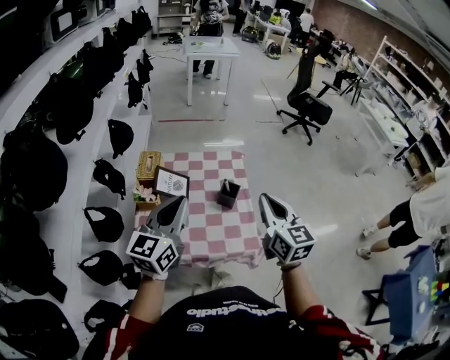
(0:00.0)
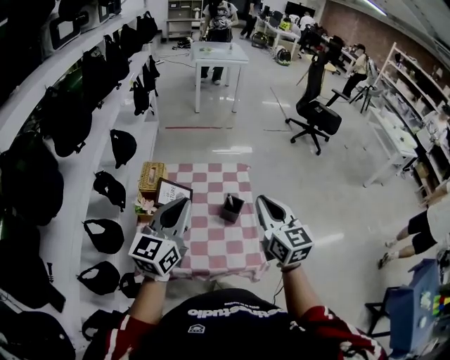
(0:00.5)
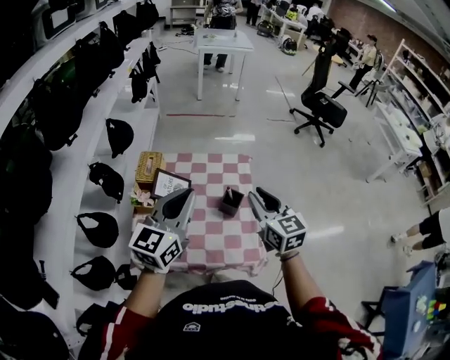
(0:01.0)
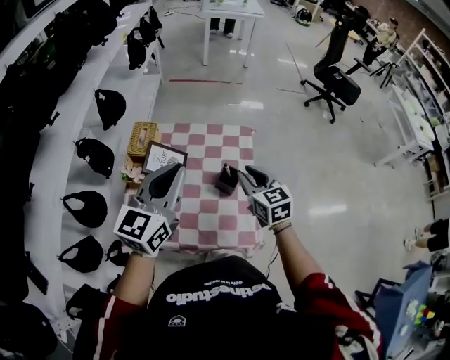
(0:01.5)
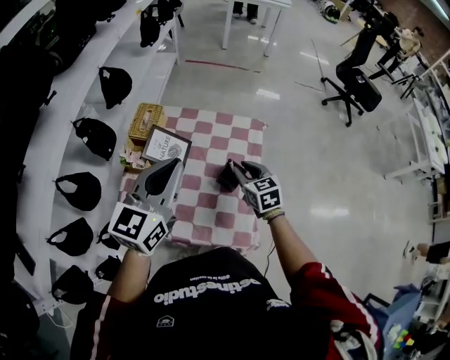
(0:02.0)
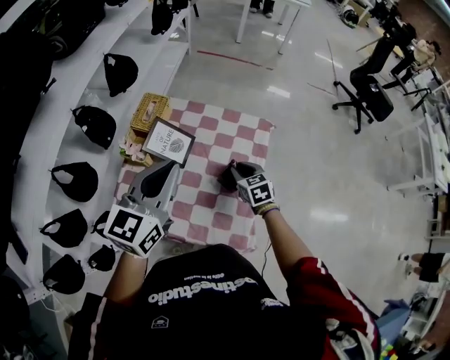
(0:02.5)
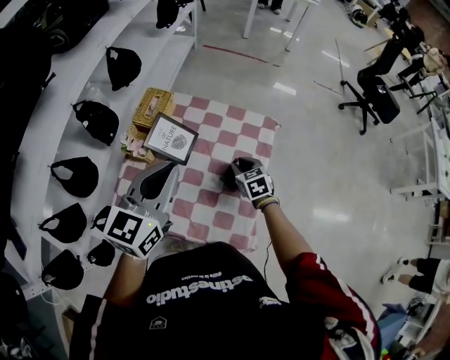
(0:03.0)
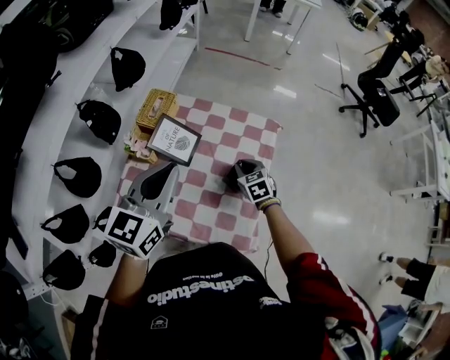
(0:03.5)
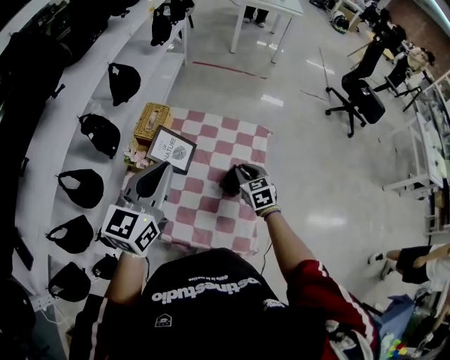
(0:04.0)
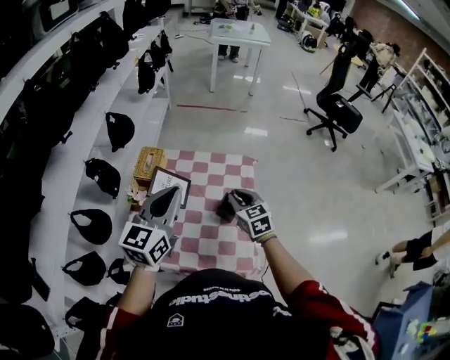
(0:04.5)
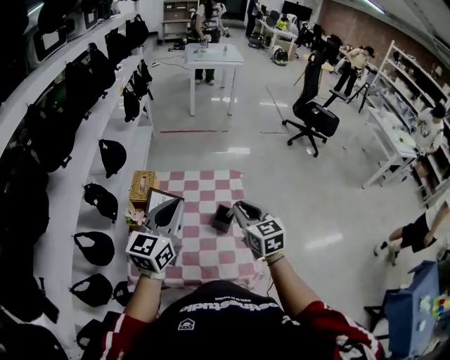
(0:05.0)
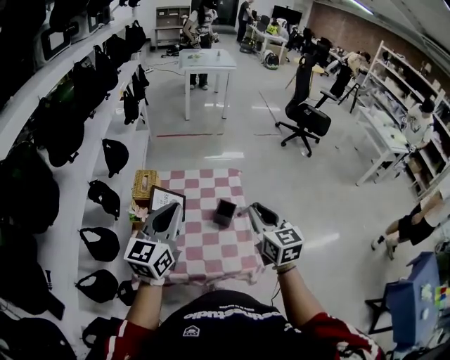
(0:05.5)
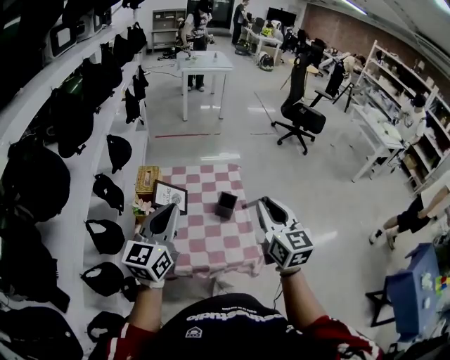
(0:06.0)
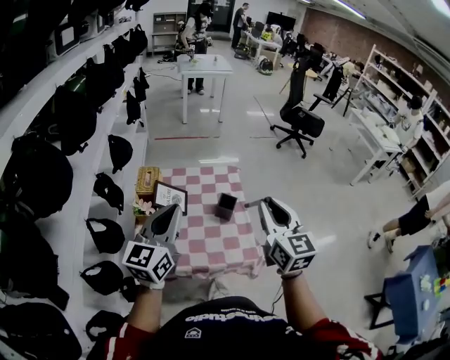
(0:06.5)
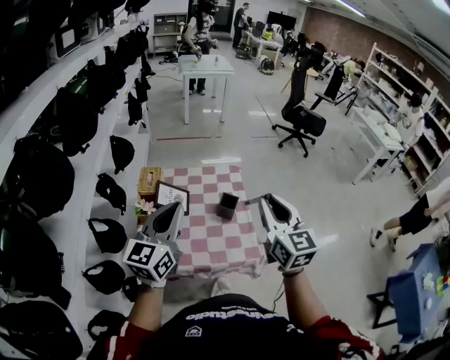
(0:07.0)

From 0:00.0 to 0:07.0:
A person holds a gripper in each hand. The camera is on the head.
From 0:00.0 to 0:02.0: The right gripper moves downward and forward, some 30 cm, swivels about 40 degrees, and opens; the left gripper shifts some 15 cm forward and to the right.
From 0:02.0 to 0:03.5: The right gripper moves downward, about 10 cm.
From 0:03.5 to 0:05.0: The right gripper moves upward and backward, roughly 30 cm, and swivels some 30 degrees, while the left gripper is displaced upward by roughly 5 cm.
From 0:05.0 to 0:07.0: The right gripper moves backward and upward, some 20 cm, and turns by approximately 20 degrees. The left gripper is displaced backward by approximately 15 cm.

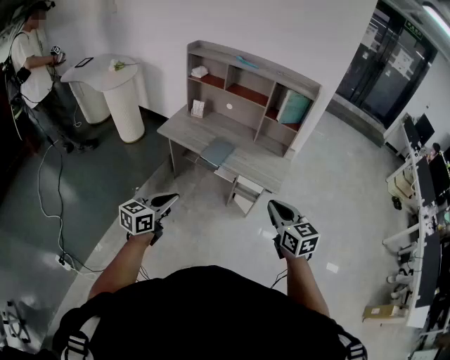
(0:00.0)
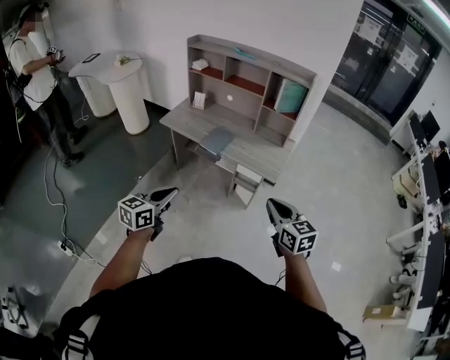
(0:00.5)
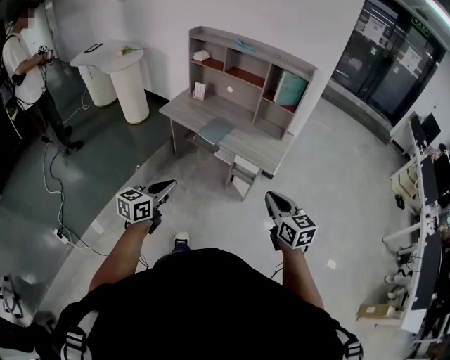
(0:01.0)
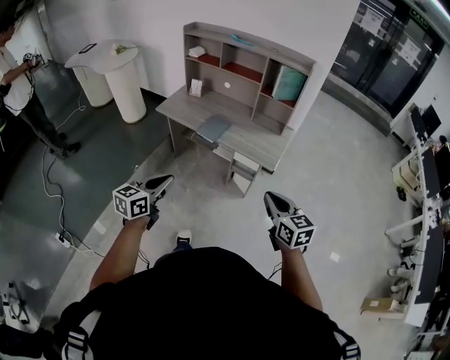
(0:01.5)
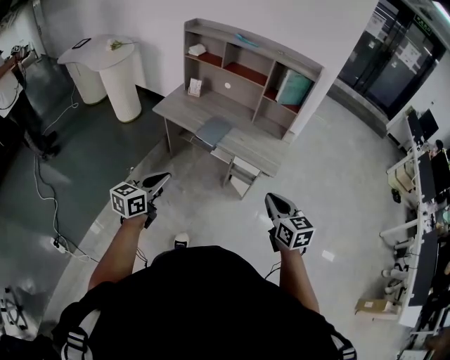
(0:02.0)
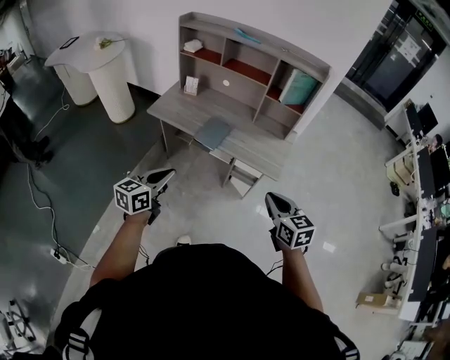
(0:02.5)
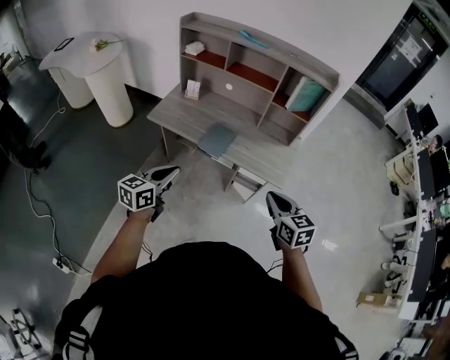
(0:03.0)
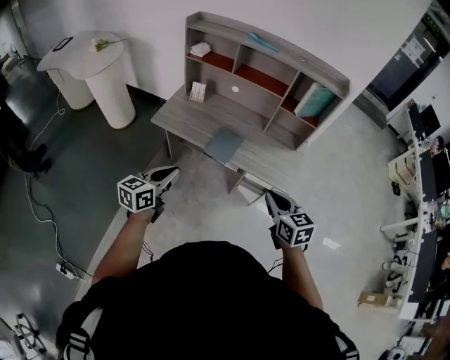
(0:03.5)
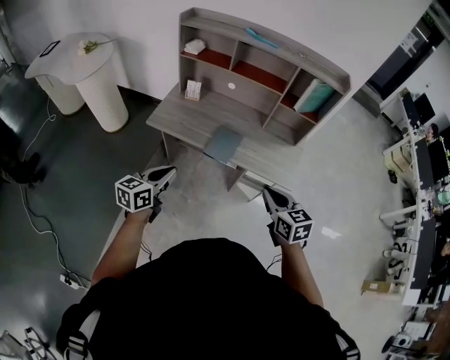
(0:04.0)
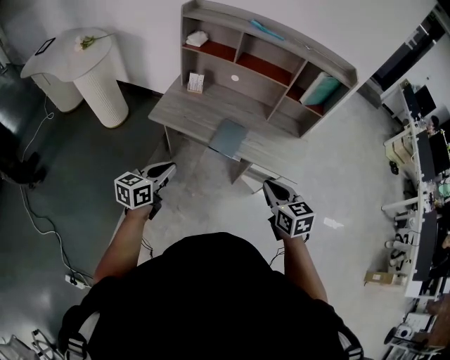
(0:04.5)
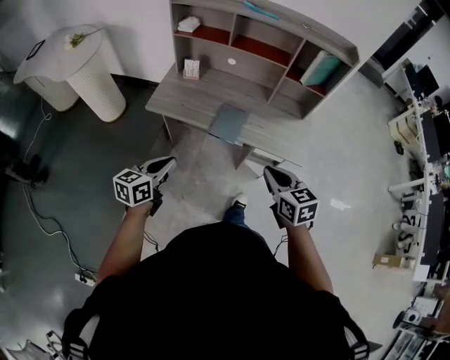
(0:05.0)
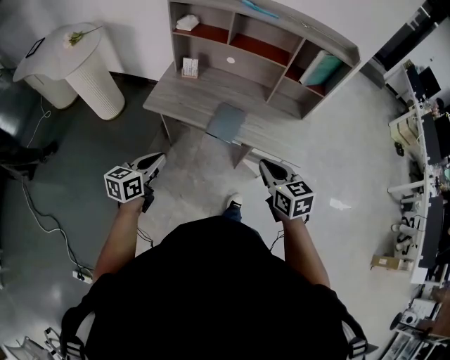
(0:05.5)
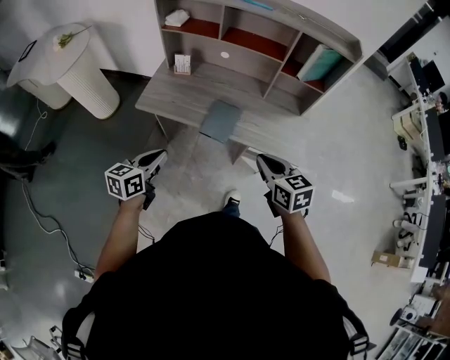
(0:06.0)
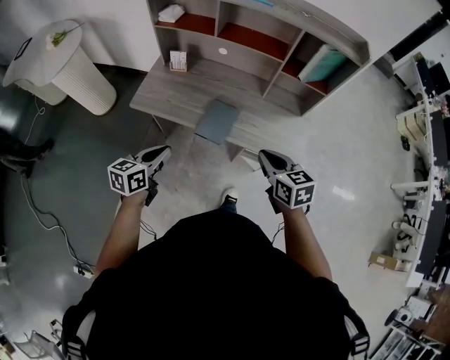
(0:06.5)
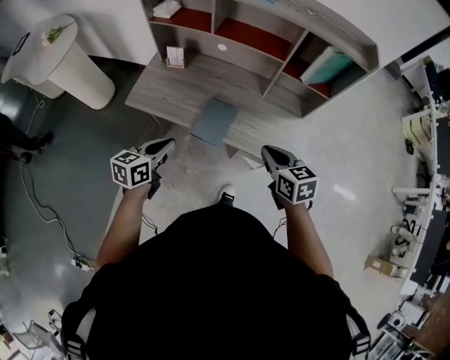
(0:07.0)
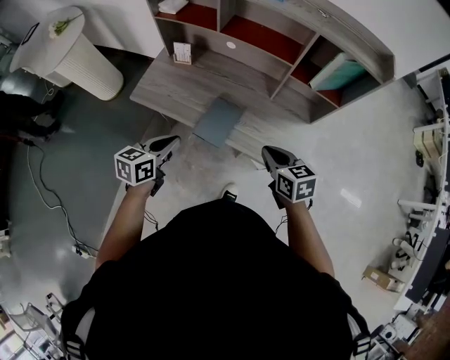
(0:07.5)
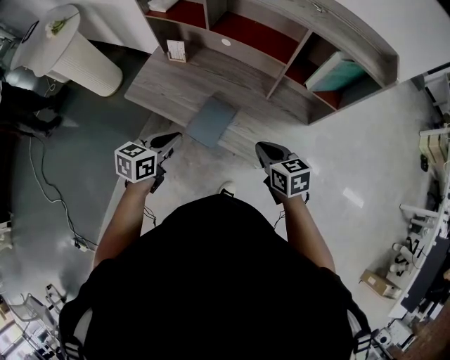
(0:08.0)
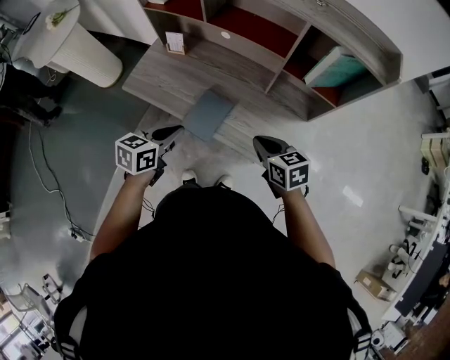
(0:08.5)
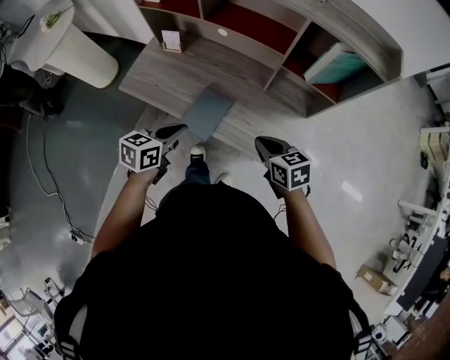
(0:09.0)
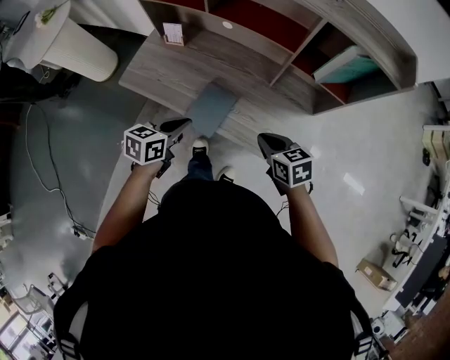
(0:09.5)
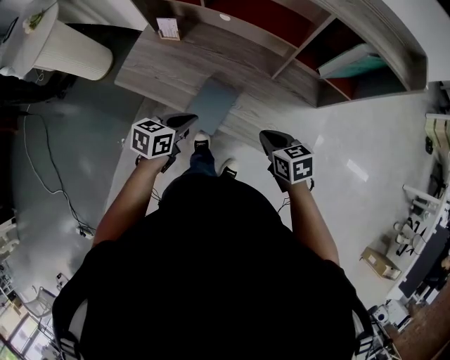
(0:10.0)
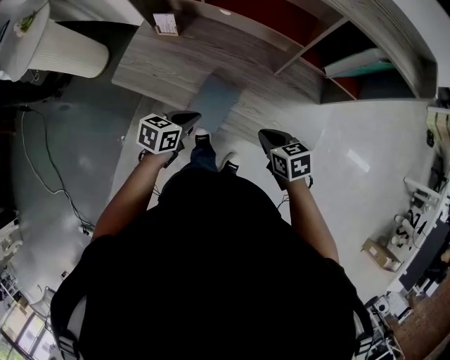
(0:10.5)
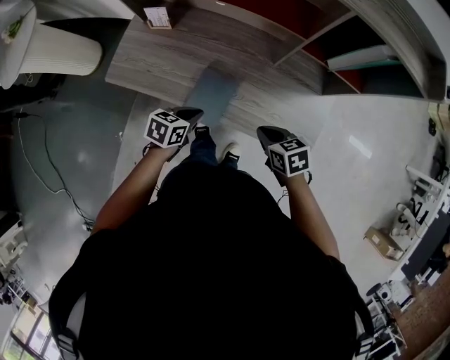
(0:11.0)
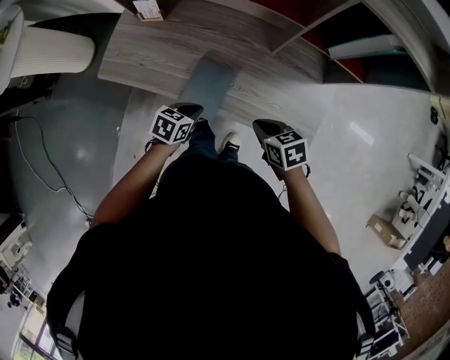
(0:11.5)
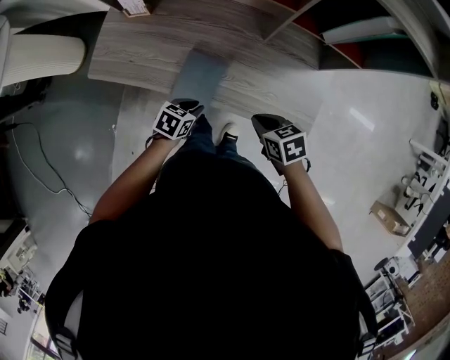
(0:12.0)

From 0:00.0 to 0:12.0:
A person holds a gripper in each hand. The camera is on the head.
From 0:00.0 to 0:02.0: The left gripper moves about 10 cm backward and comes back.
From 0:02.0 to 0:04.0: The two grippers go about 25 cm forward and to the left.
From 0:04.0 to 0:06.0: The grippers both shift forward by roughly 5 cm.
From 0:06.0 to 0:08.0: The right gripper goes roughly 20 cm forward, to the right and downward. Meanwhile the left gripper shifts some 20 cm forward and to the right.
From 0:08.0 to 0:10.0: The left gripper travels downward and forward by about 10 cm; the right gripper heads downward, covering roughly 5 cm.
From 0:10.0 to 0:12.0: The left gripper is displaced downward by about 15 cm, and rotates some 30 degrees. Meanwhile the right gripper moves downward, approximately 10 cm.

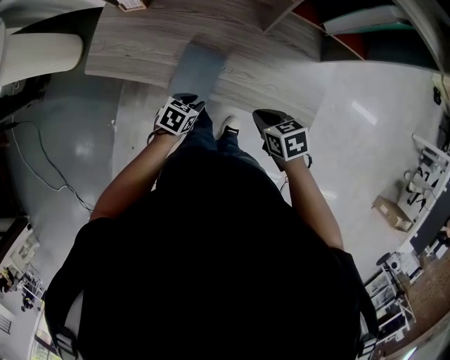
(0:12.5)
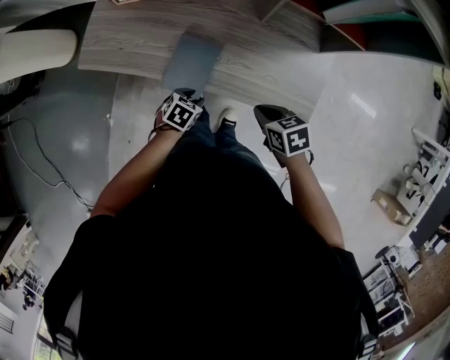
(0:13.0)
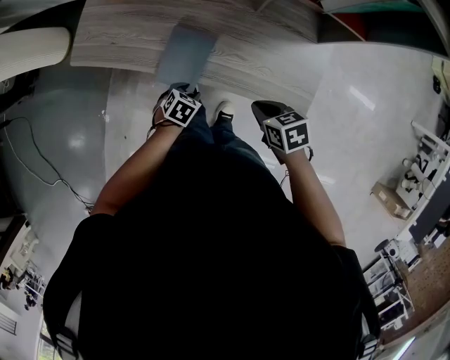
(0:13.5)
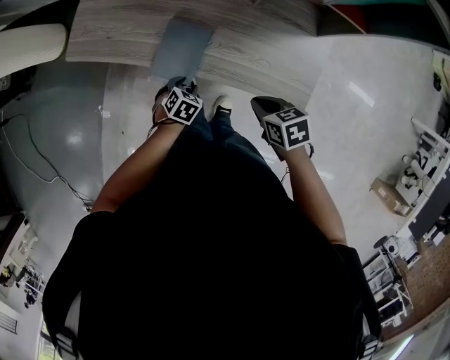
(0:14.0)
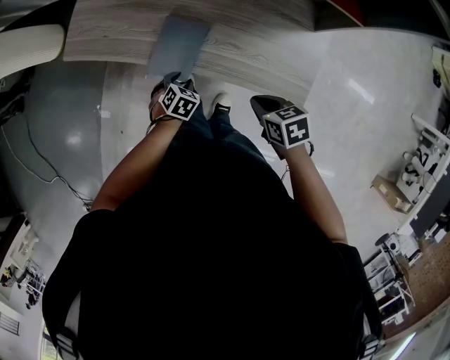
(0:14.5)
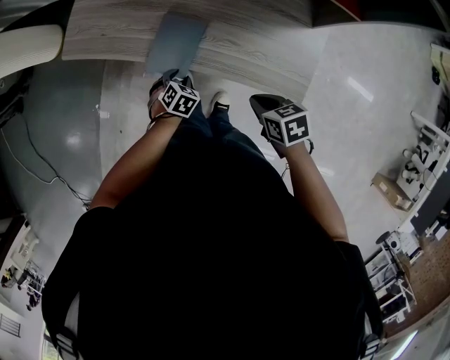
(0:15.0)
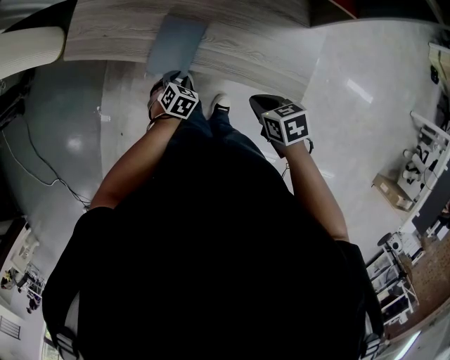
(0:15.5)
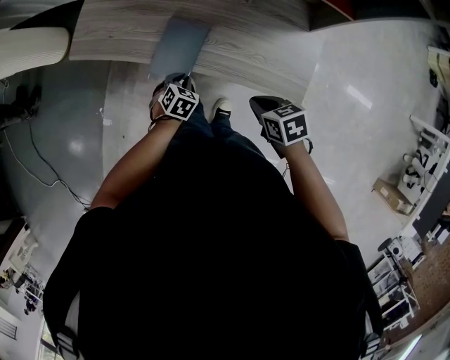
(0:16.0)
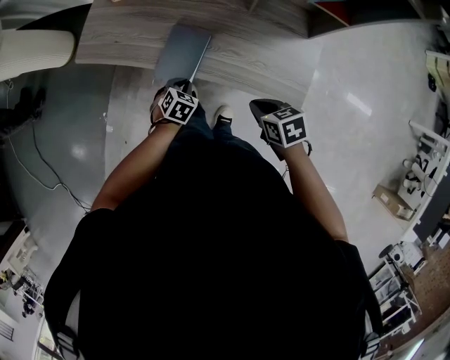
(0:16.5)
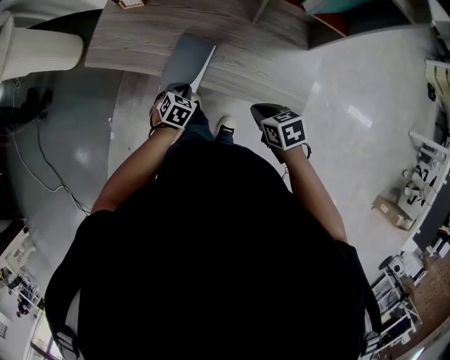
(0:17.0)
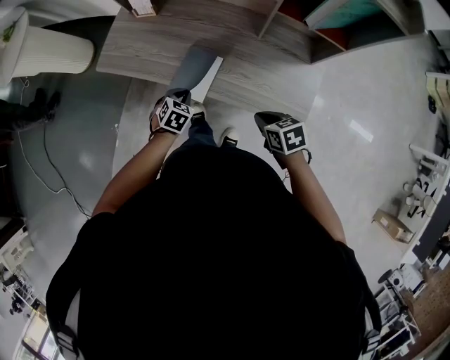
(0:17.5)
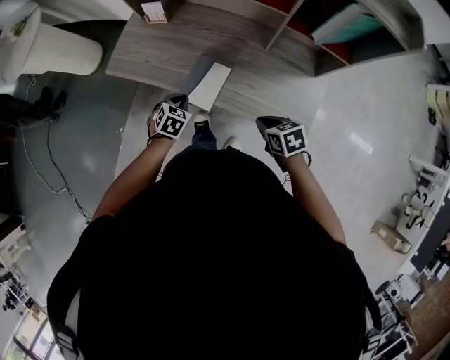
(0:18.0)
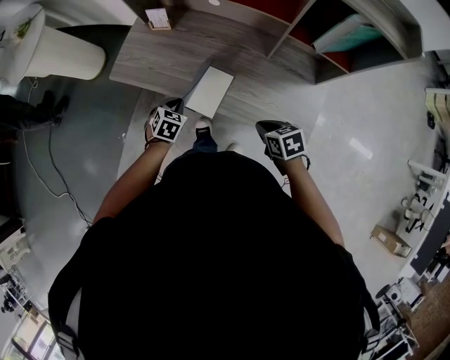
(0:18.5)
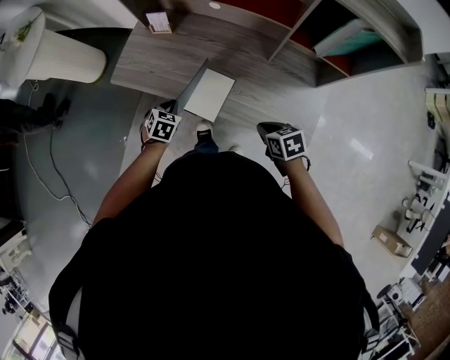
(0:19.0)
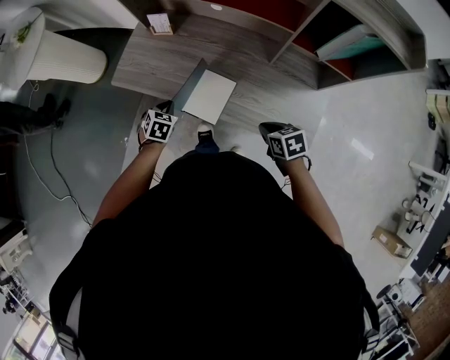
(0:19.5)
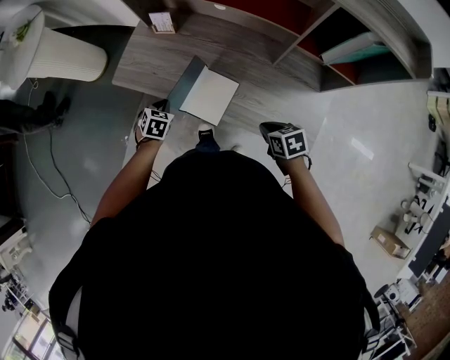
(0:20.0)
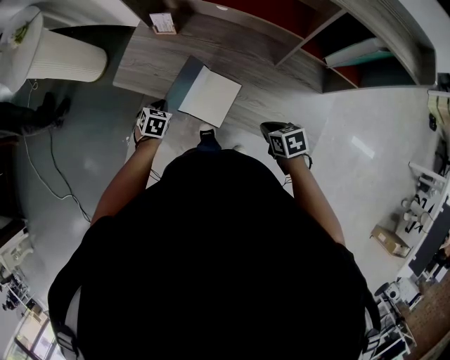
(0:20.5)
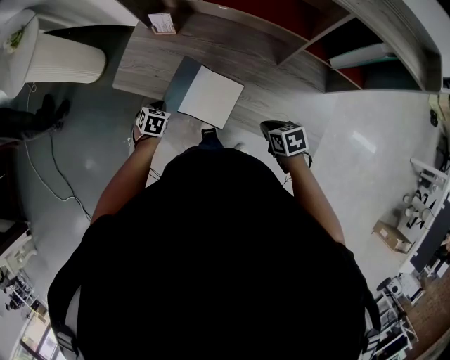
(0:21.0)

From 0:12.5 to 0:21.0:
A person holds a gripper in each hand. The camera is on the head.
From 0:12.5 to 0:14.5: The left gripper shifts approximately 5 cm downward, and changes its angle by some 20 degrees; the right gripper moves about 5 cm.
From 0:14.5 to 0:16.5: The left gripper closes up.
From 0:16.5 to 0:19.0: The right gripper shifts roughly 5 cm forward. Meanwhile the left gripper goes roughly 15 cm to the left, forward and upward.
From 0:19.0 to 0:21.0: The left gripper heads forward and to the left, covering some 10 cm, while the right gripper moves about 5 cm.
